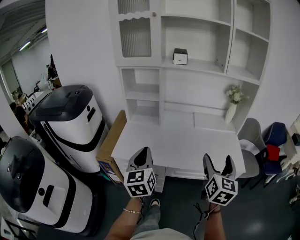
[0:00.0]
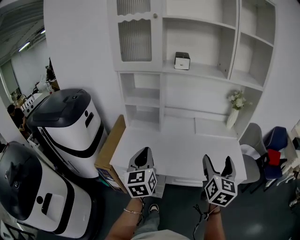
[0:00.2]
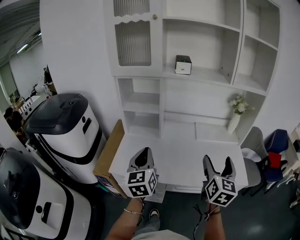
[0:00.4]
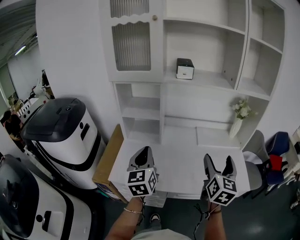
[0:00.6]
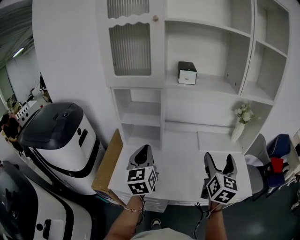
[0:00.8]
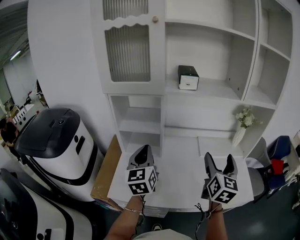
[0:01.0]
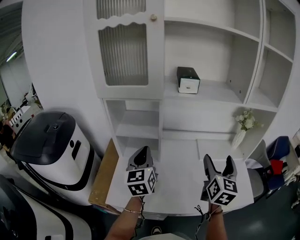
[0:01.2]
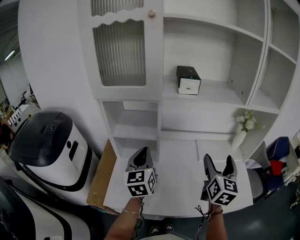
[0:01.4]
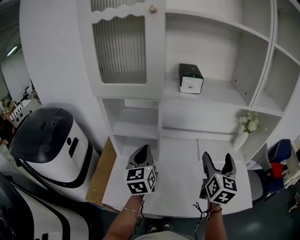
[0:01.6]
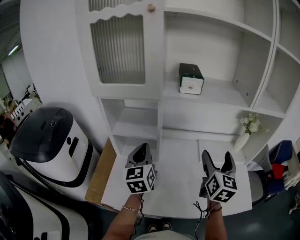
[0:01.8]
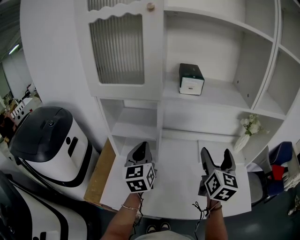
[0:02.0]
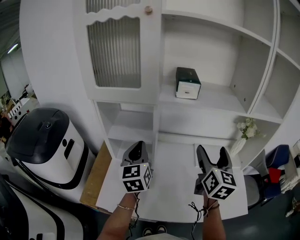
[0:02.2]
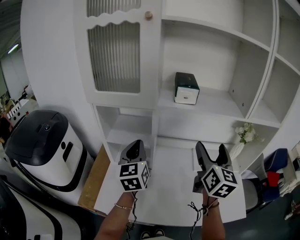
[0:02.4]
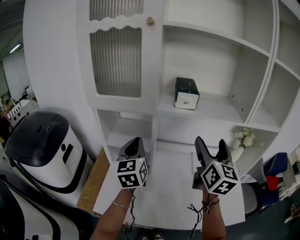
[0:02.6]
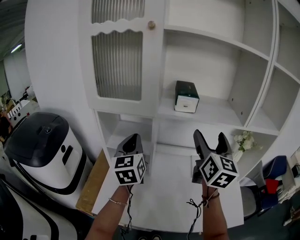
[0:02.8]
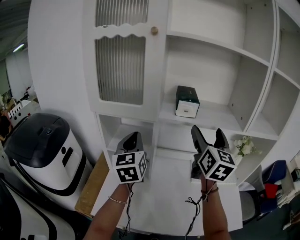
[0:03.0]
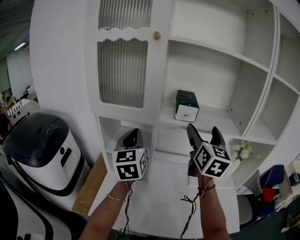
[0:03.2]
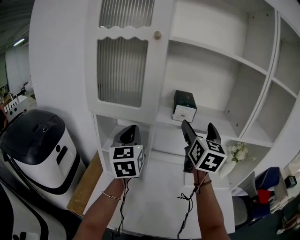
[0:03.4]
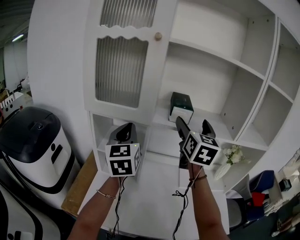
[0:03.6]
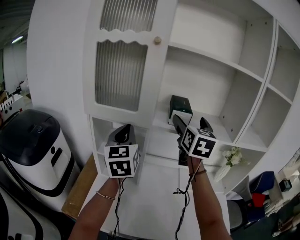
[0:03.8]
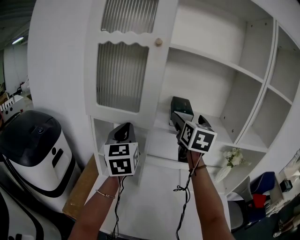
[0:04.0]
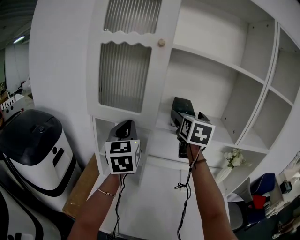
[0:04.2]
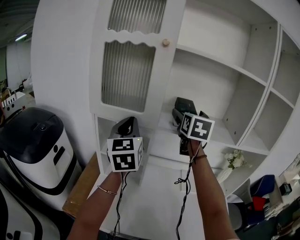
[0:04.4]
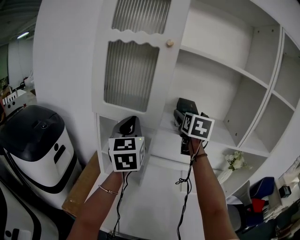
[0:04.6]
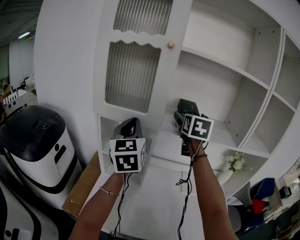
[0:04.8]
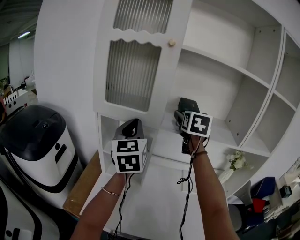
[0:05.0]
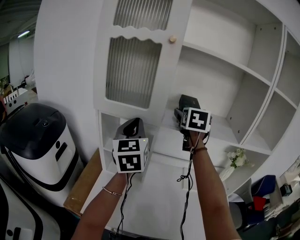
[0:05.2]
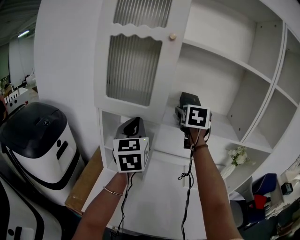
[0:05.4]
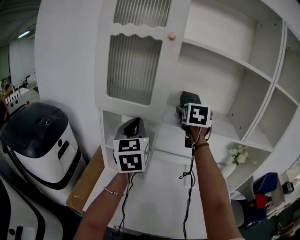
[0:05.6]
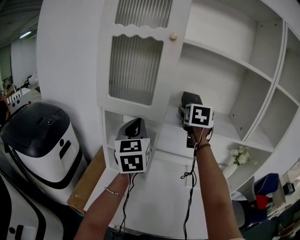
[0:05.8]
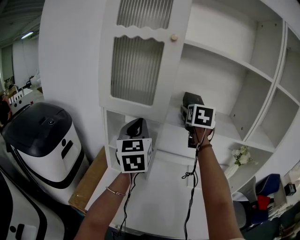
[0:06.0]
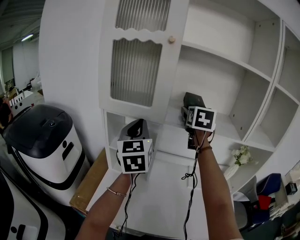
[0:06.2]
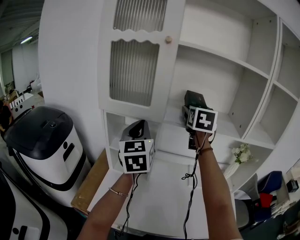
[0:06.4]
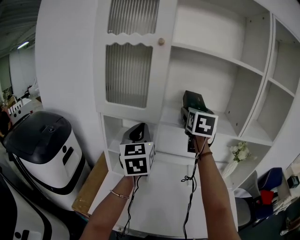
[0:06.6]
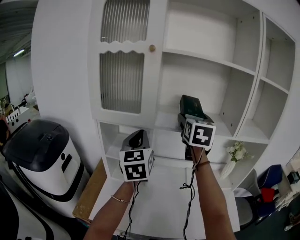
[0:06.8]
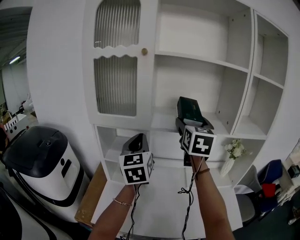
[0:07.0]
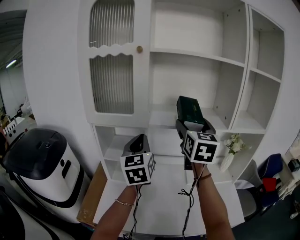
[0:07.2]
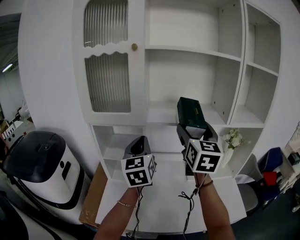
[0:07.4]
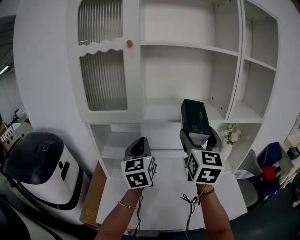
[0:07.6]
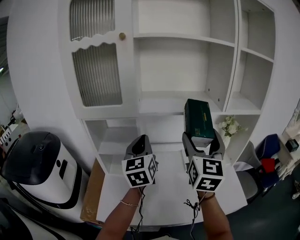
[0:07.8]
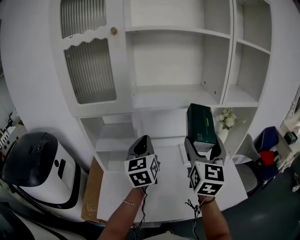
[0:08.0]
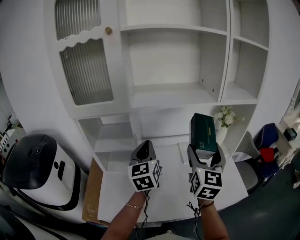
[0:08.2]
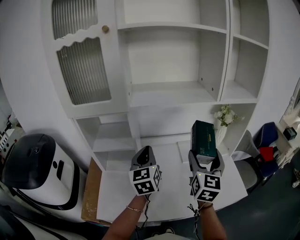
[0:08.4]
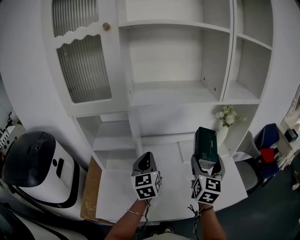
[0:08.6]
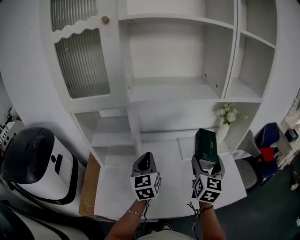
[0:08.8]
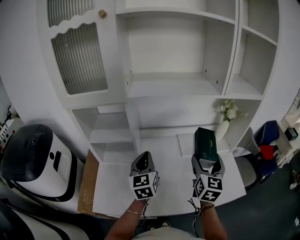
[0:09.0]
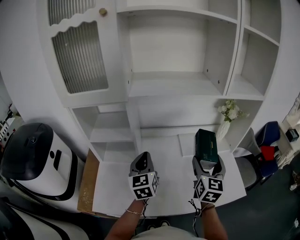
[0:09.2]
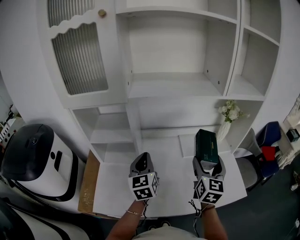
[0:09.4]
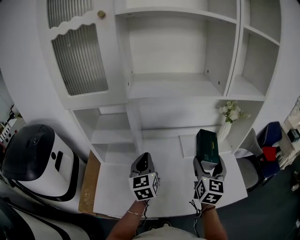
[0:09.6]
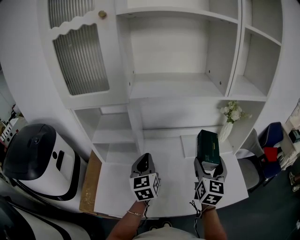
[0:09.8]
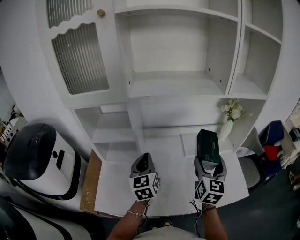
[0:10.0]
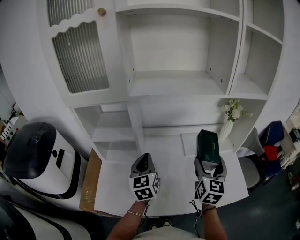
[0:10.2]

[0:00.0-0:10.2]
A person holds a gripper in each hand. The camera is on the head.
0:00.0 to 0:01.4: The grippers both shift forward by approximately 30 cm.
0:01.4 to 0:03.0: Both grippers move upward and forward, approximately 15 cm.
0:03.0 to 0:04.4: The left gripper shifts about 10 cm upward; the right gripper is displaced forward, to the left and upward by roughly 15 cm.
0:04.4 to 0:05.8: The grippers stay close to where they were, moving slightly.
0:05.8 to 0:07.2: The left gripper travels to the right by roughly 5 cm; the right gripper heads backward, covering some 15 cm.
0:07.2 to 0:08.8: The two grippers go roughly 25 cm downward and to the right.
0:08.8 to 0:10.2: The grippers move only a little.

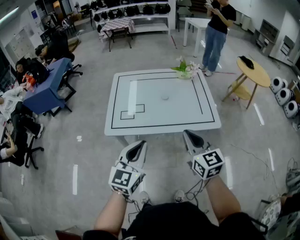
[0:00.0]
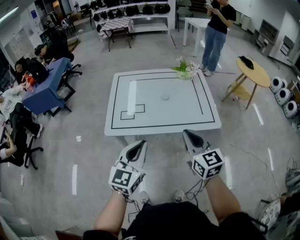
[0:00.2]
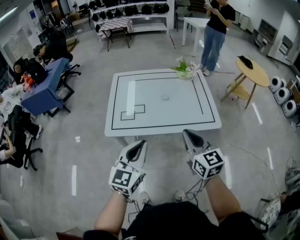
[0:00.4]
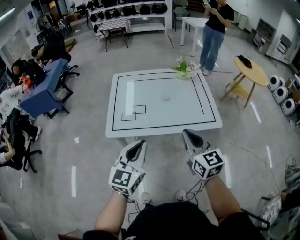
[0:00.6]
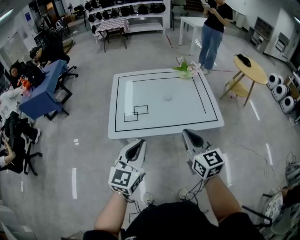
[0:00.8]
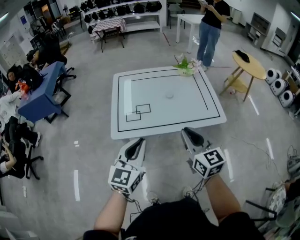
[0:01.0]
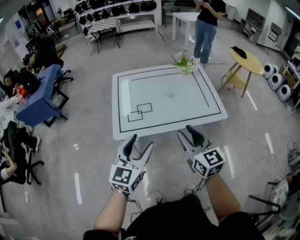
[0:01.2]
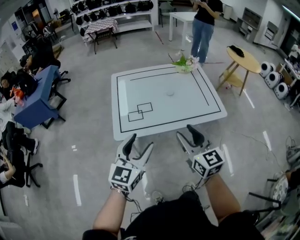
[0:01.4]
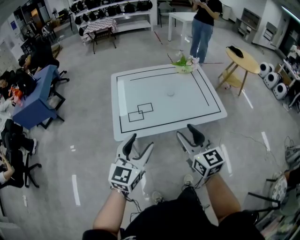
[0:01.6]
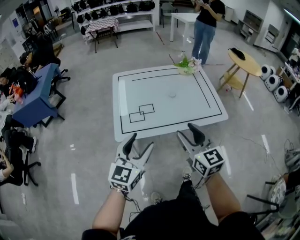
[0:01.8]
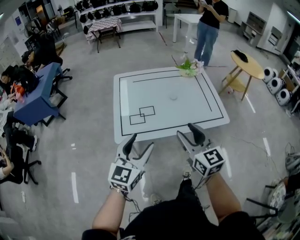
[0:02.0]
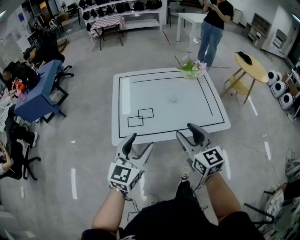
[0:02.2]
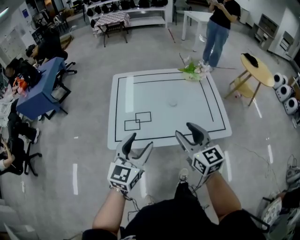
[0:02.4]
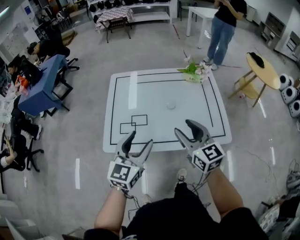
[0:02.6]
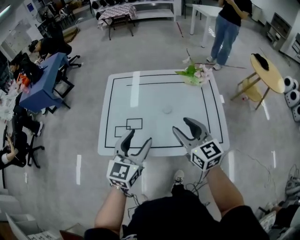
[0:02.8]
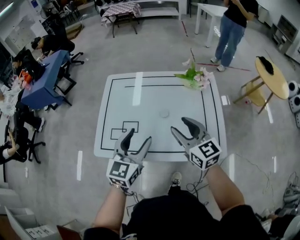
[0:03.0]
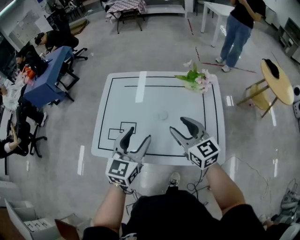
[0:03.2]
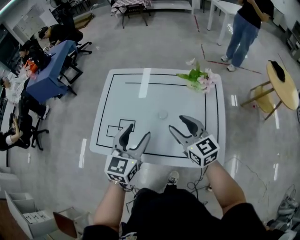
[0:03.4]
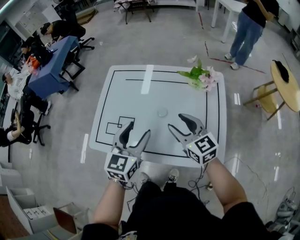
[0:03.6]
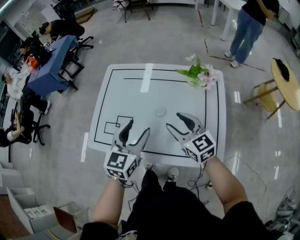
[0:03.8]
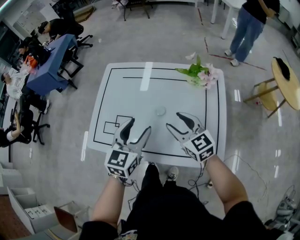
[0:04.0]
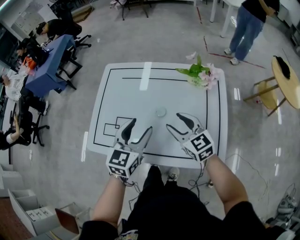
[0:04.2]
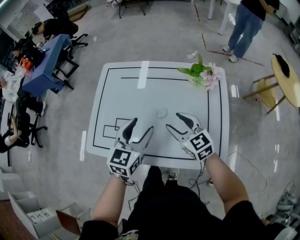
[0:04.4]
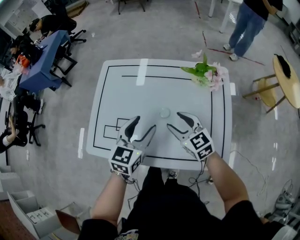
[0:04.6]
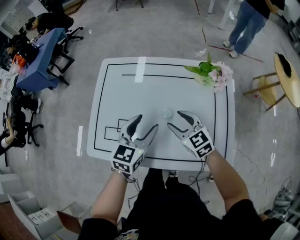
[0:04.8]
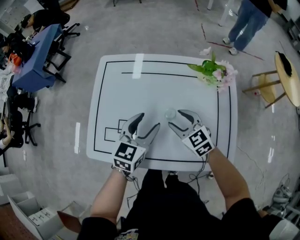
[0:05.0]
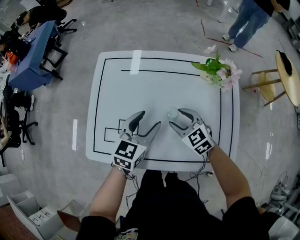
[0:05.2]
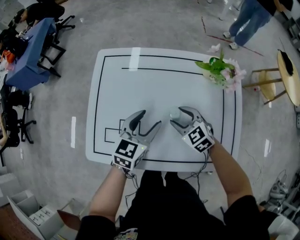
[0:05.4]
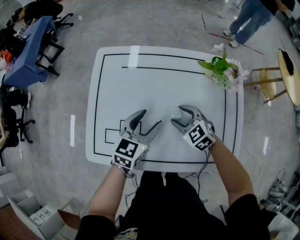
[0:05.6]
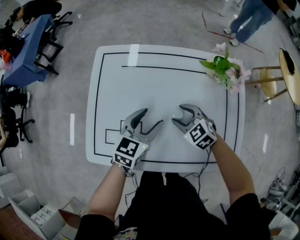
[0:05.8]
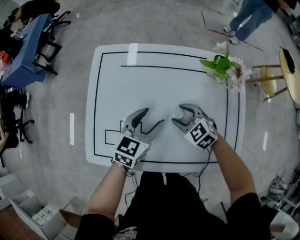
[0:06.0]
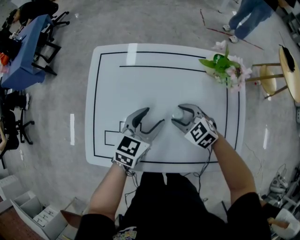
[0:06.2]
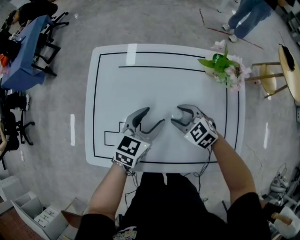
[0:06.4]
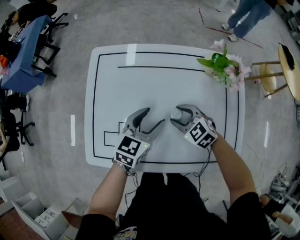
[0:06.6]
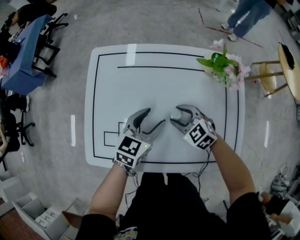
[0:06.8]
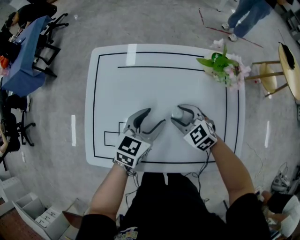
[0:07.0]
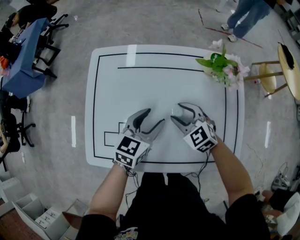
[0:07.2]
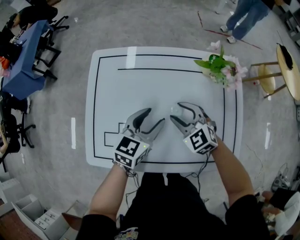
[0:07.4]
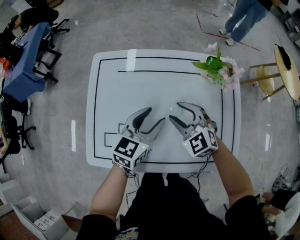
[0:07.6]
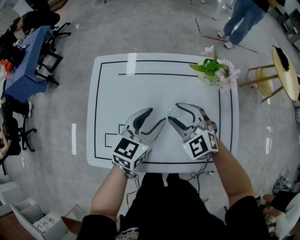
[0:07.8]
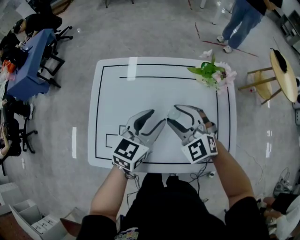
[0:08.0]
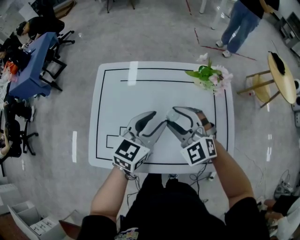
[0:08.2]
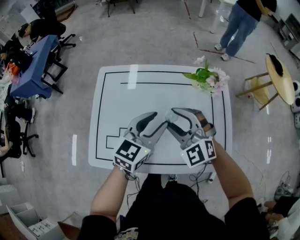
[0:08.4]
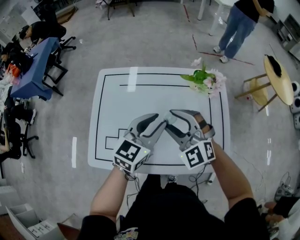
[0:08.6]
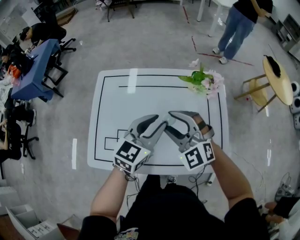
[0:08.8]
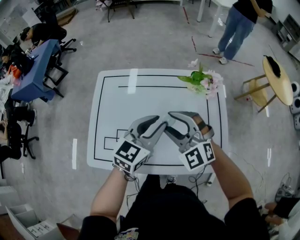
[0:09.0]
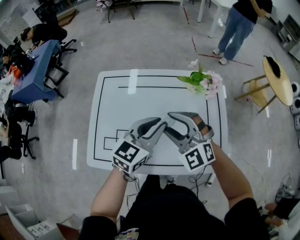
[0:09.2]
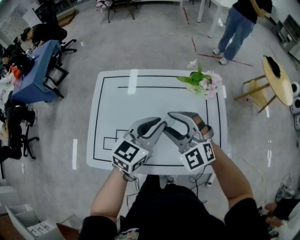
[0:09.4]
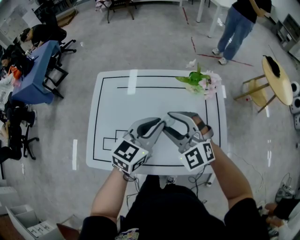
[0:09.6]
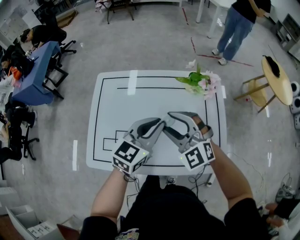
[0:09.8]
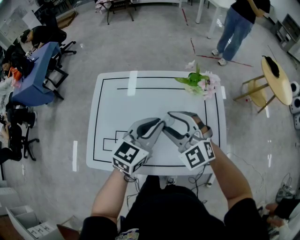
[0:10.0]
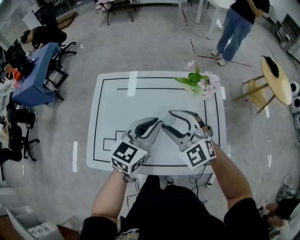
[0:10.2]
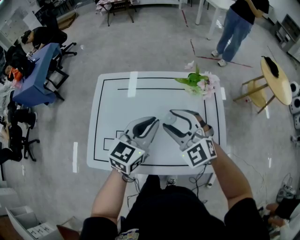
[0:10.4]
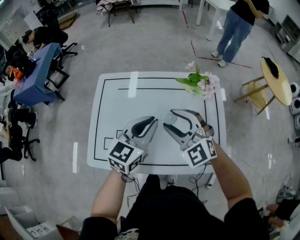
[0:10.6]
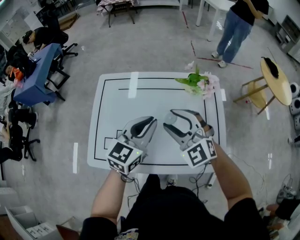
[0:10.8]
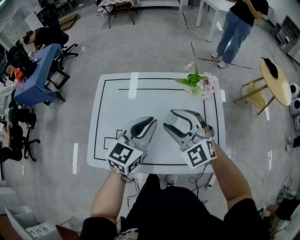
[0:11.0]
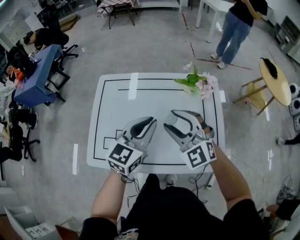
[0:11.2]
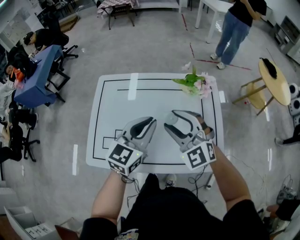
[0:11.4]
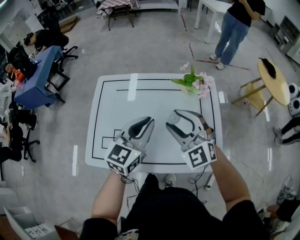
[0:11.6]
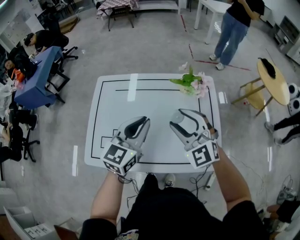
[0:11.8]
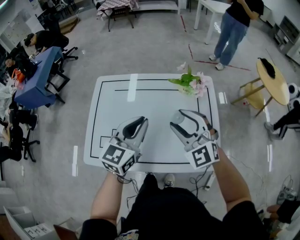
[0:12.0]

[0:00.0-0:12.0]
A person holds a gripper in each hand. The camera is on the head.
0:00.0 to 0:01.6: The grippers both shift to the left by roughly 15 cm. The right gripper opens up. Meanwhile the left gripper opens.
0:01.6 to 0:03.0: The grippers both shift forward and to the right by approximately 30 cm. The right gripper swivels roughly 20 degrees.
0:03.0 to 0:04.4: The left gripper heads forward, downward and to the right, covering about 15 cm; the right gripper moves downward and forward, some 15 cm.
0:04.4 to 0:06.0: The right gripper is displaced downward, forward and to the left by approximately 20 cm, and turns by about 30 degrees. Meanwhile the left gripper goes roughly 15 cm downward and forward.
0:06.0 to 0:07.6: The left gripper shifts by some 5 cm. Meanwhile the right gripper shifts about 10 cm upward.
0:07.6 to 0:09.0: The left gripper shifts about 10 cm upward and to the right, and closes its fingers, while the right gripper moves upward and backward, some 15 cm, and turns by roughly 20 degrees.
0:09.0 to 0:10.4: The grippers make only small movements.
0:10.4 to 0:12.0: The right gripper is displaced to the right by approximately 5 cm.

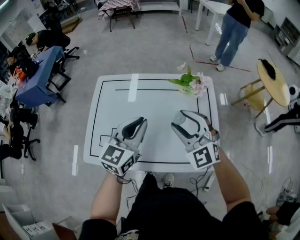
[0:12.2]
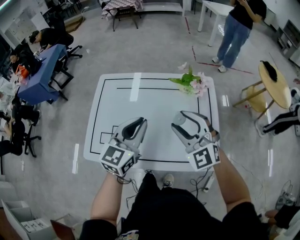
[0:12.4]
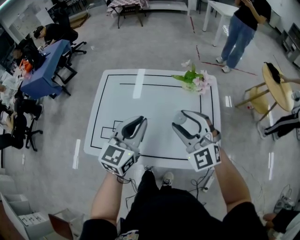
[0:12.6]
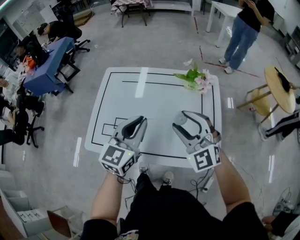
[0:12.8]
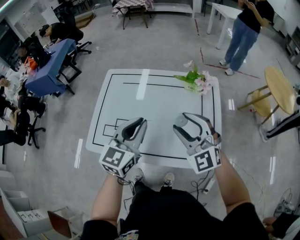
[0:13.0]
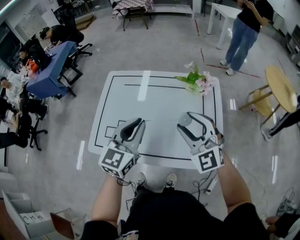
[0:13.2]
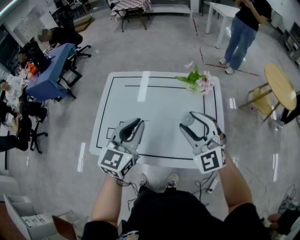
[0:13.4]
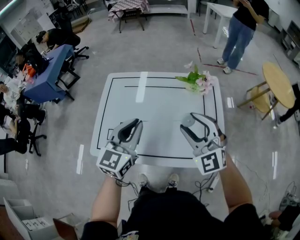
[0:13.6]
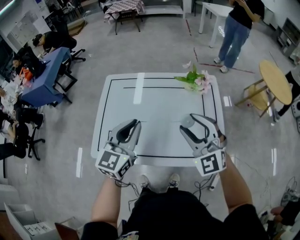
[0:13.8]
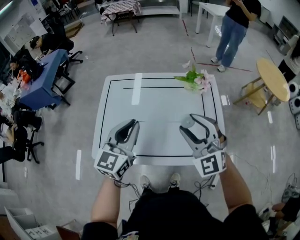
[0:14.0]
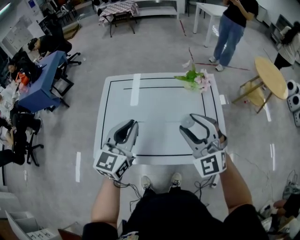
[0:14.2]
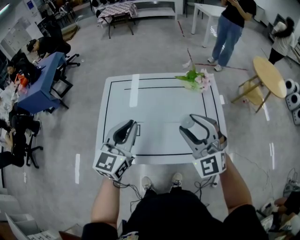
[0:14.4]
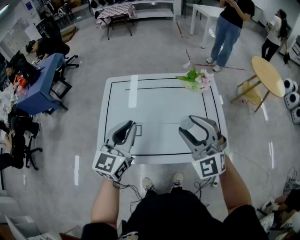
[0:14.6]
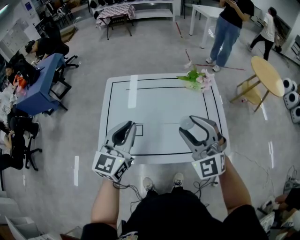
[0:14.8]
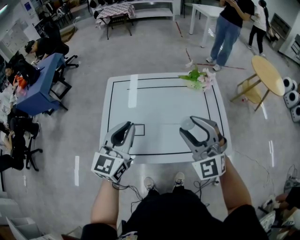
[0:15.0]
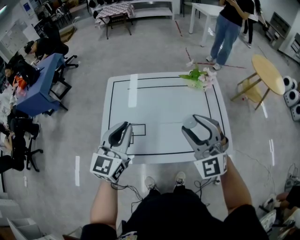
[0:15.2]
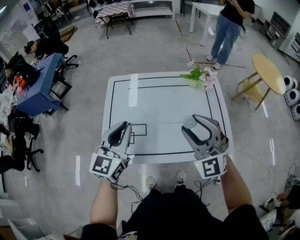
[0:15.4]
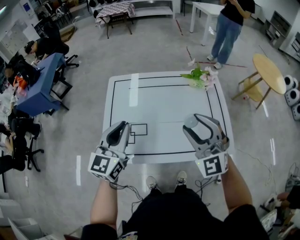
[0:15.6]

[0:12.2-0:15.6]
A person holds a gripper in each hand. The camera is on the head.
0:12.2 to 0:13.8: The left gripper moves to the left, about 5 cm, while the right gripper travels backward by about 5 cm.
0:13.8 to 0:15.6: The right gripper heads to the left, covering about 10 cm. The left gripper shifts some 15 cm to the left.
